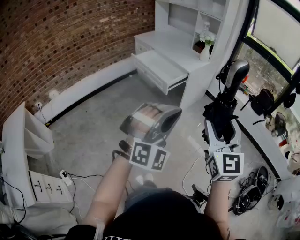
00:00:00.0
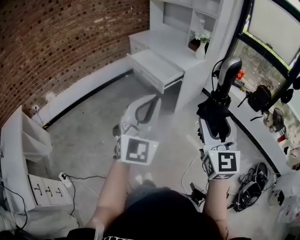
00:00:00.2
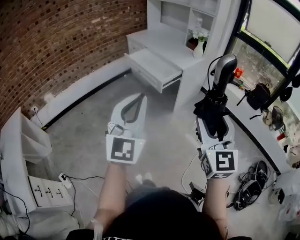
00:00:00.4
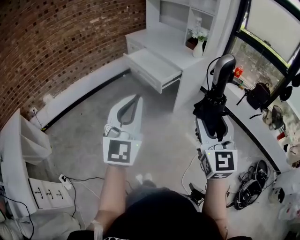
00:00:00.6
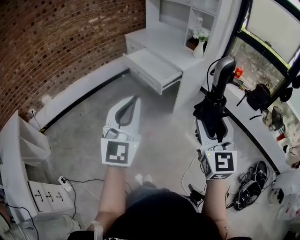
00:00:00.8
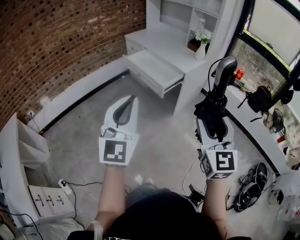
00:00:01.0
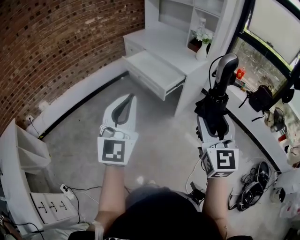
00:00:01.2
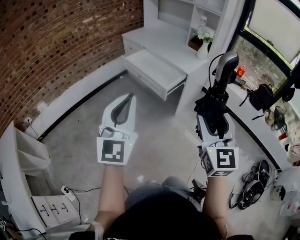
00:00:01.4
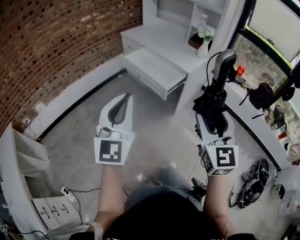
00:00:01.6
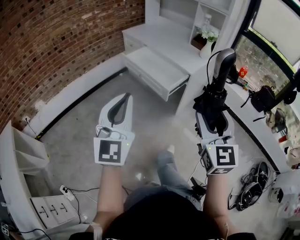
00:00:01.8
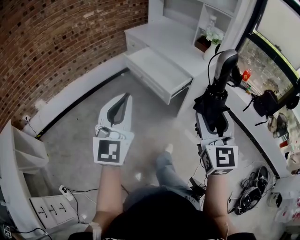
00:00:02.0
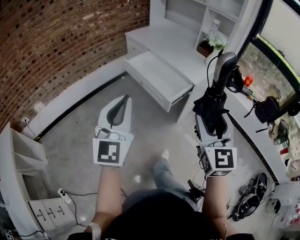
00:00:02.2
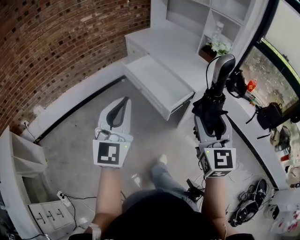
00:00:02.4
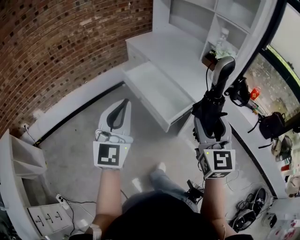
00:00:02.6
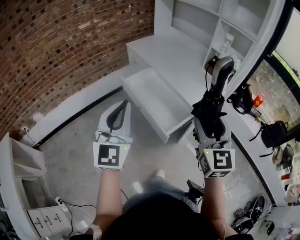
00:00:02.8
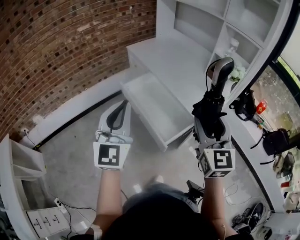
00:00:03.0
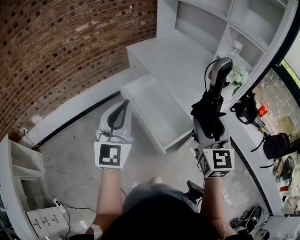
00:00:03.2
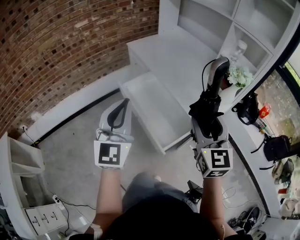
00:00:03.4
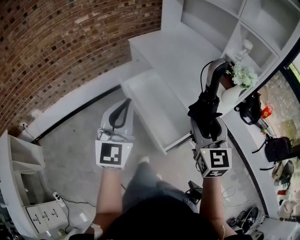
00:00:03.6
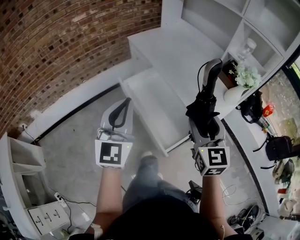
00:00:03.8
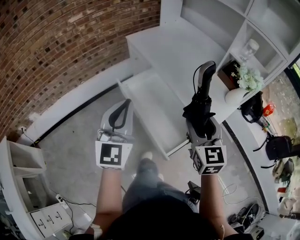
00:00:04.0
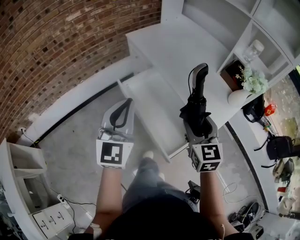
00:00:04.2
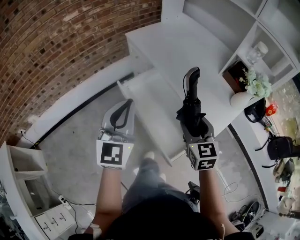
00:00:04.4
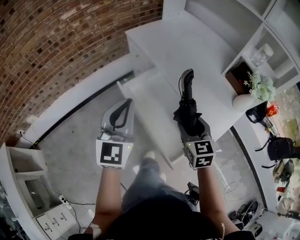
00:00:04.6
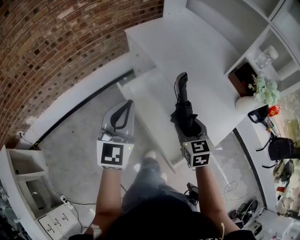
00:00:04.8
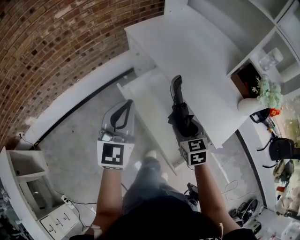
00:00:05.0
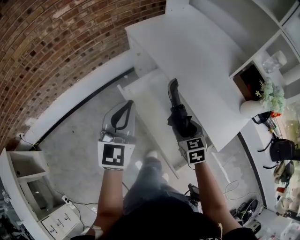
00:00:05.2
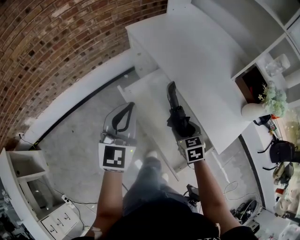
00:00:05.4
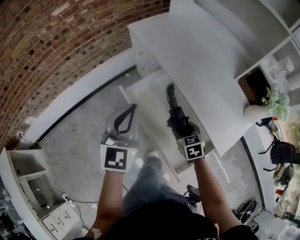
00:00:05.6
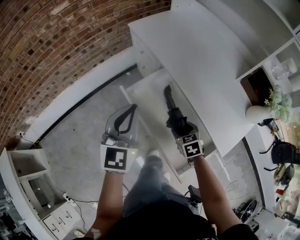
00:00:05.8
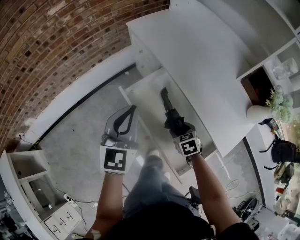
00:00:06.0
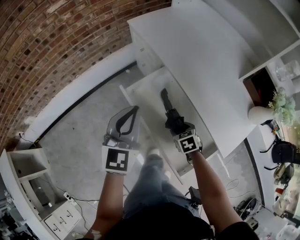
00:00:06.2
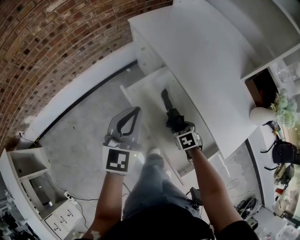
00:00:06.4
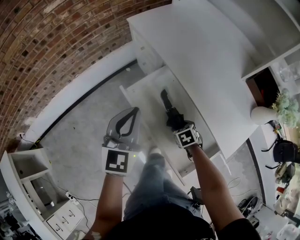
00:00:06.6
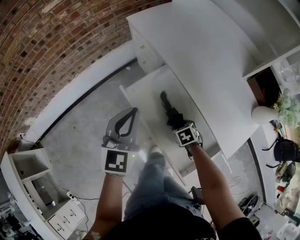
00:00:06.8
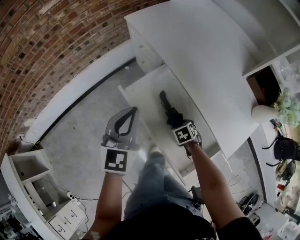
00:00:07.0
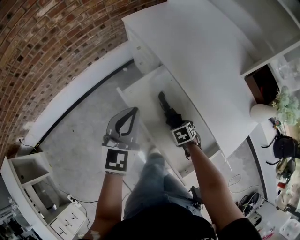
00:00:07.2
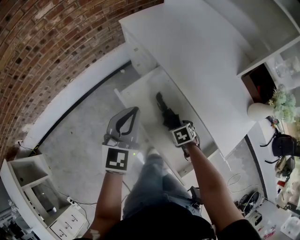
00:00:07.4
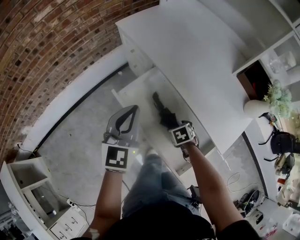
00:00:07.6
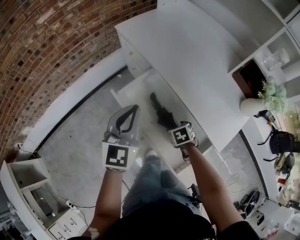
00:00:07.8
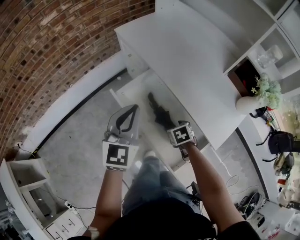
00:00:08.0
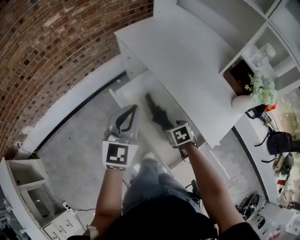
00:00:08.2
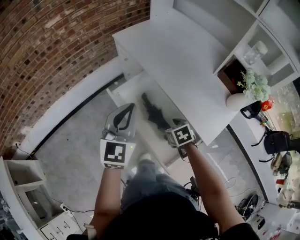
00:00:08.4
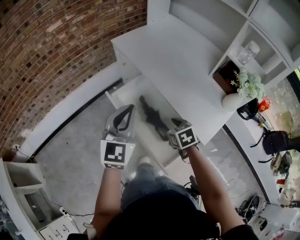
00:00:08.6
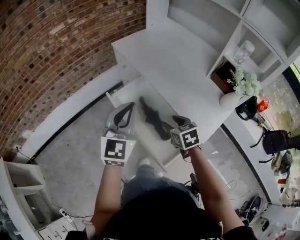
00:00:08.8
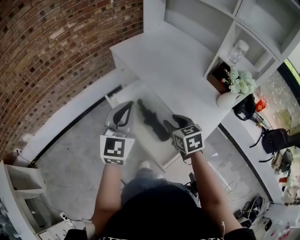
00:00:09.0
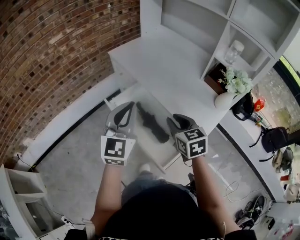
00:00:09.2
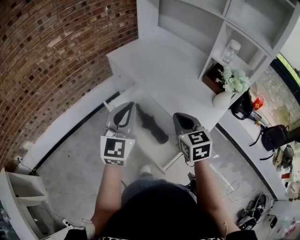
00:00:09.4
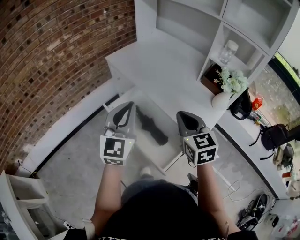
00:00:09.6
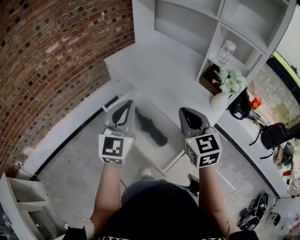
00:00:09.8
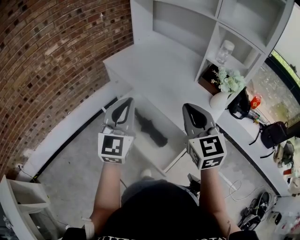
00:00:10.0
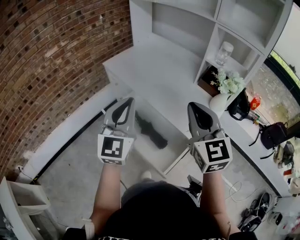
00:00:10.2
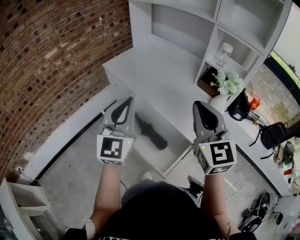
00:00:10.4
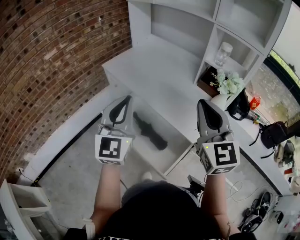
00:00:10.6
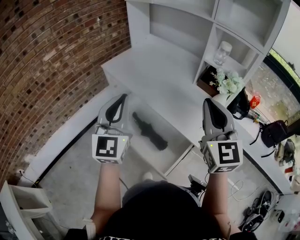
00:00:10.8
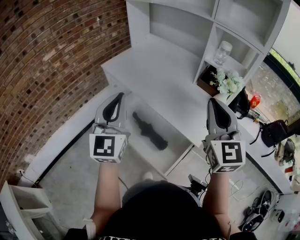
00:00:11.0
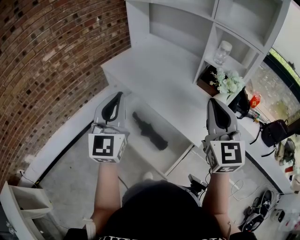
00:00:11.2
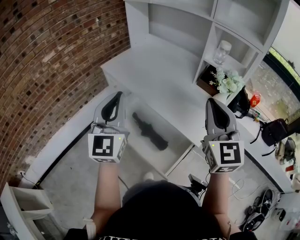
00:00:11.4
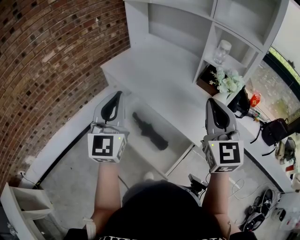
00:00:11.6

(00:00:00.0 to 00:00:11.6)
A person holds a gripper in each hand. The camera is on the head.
00:00:00.0 - 00:00:01.4: The right gripper travels forward and to the left by roughly 15 cm. Meanwhile the left gripper moves to the left and forward, roughly 25 cm, and rolls counterclockwise, seen from behind, by some 50 degrees.
00:00:01.4 - 00:00:02.8: The grippers both shift forward by some 35 cm.
00:00:02.8 - 00:00:04.4: The left gripper heads forward, covering roughly 25 cm; the right gripper travels forward and downward by approximately 30 cm, and swivels about 20 degrees.
00:00:04.4 - 00:00:05.8: The right gripper heads downward and forward, covering some 25 cm, and rotates some 30 degrees. The left gripper is displaced forward and downward by roughly 15 cm.
00:00:05.8 - 00:00:07.2: The left gripper changes place by about 5 cm, while the right gripper goes approximately 10 cm downward, and rotates approximately 20 degrees.
00:00:07.2 - 00:00:08.8: The right gripper heads upward, covering roughly 25 cm, and tips its fingers upward by some 30 degrees. Meanwhile the left gripper heads backward, upward and to the right, covering roughly 15 cm.
00:00:08.8 - 00:00:10.2: The left gripper is displaced upward by roughly 10 cm, while the right gripper is displaced upward by approximately 25 cm, angles its fingers upward, by roughly 40 degrees, and closes up.
00:00:10.2 - 00:00:11.6: The right gripper goes approximately 5 cm to the right.

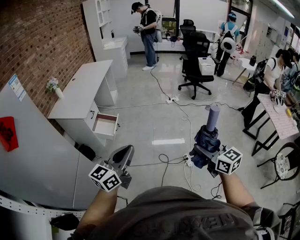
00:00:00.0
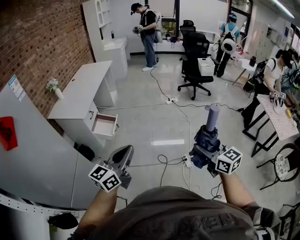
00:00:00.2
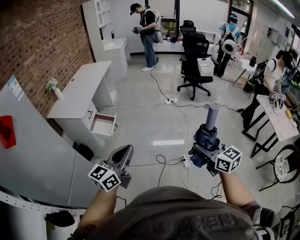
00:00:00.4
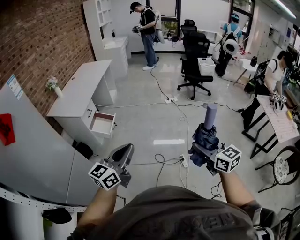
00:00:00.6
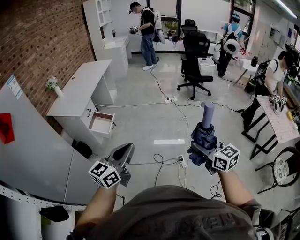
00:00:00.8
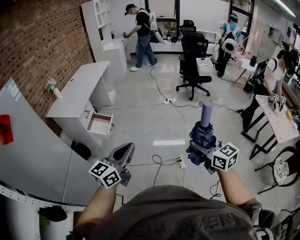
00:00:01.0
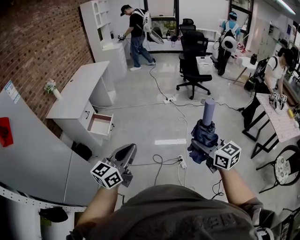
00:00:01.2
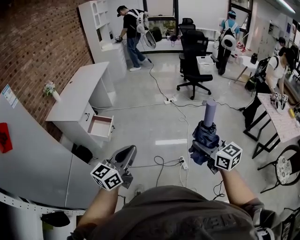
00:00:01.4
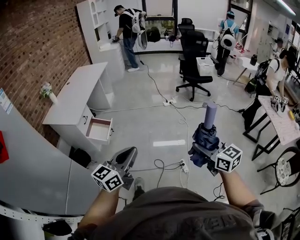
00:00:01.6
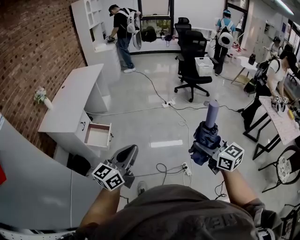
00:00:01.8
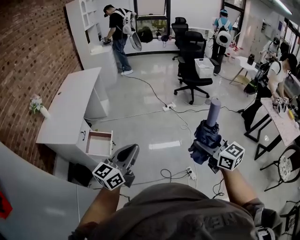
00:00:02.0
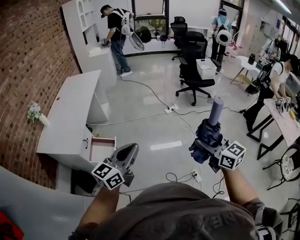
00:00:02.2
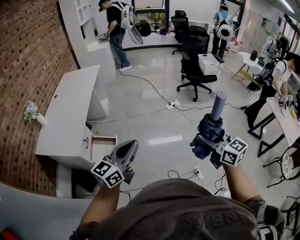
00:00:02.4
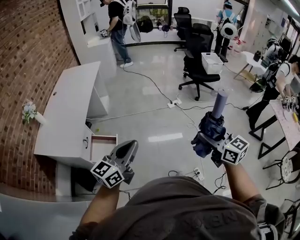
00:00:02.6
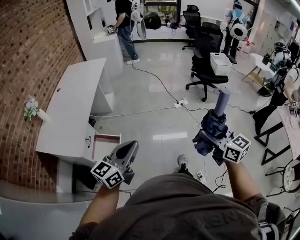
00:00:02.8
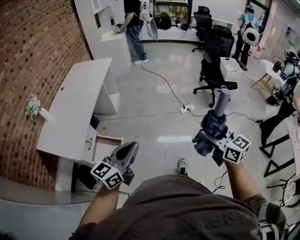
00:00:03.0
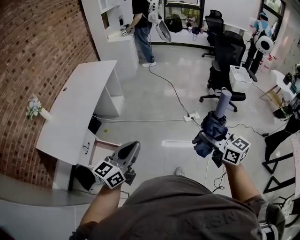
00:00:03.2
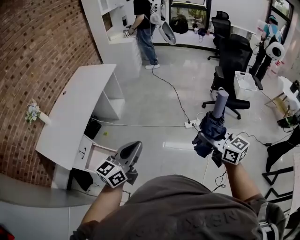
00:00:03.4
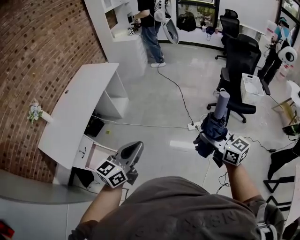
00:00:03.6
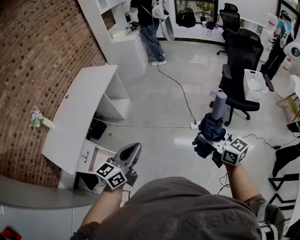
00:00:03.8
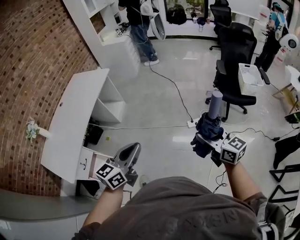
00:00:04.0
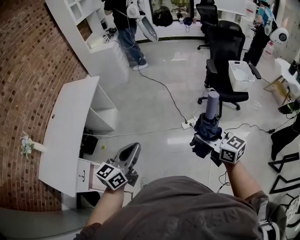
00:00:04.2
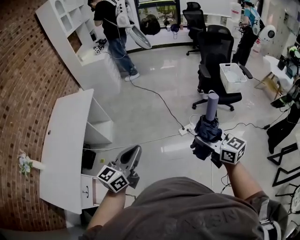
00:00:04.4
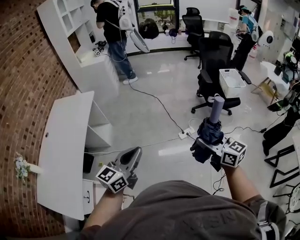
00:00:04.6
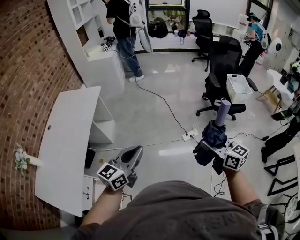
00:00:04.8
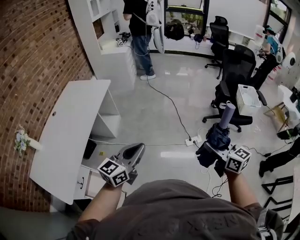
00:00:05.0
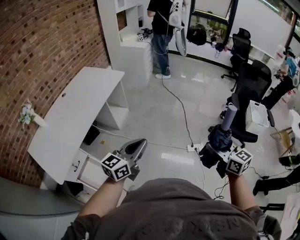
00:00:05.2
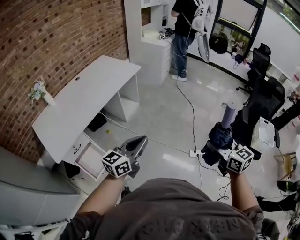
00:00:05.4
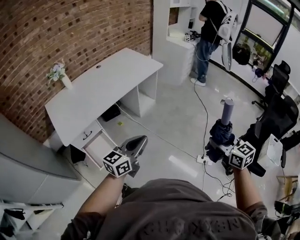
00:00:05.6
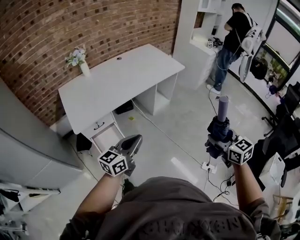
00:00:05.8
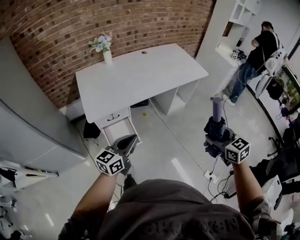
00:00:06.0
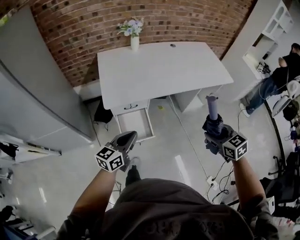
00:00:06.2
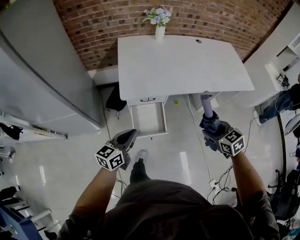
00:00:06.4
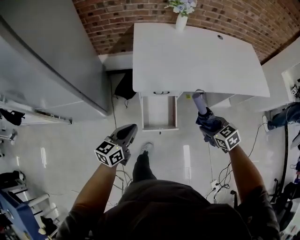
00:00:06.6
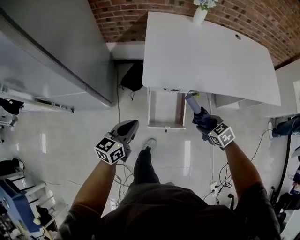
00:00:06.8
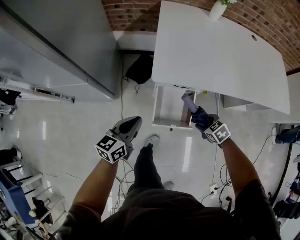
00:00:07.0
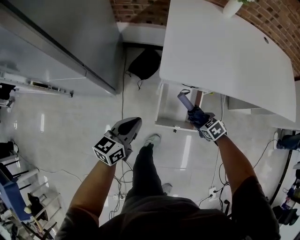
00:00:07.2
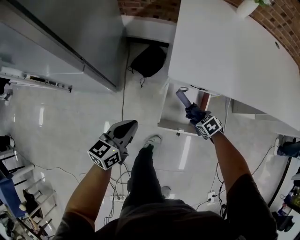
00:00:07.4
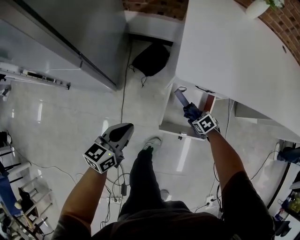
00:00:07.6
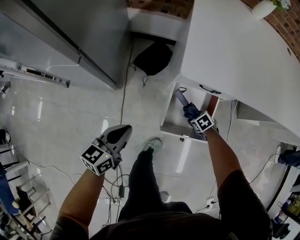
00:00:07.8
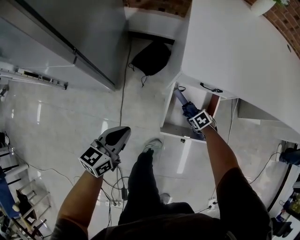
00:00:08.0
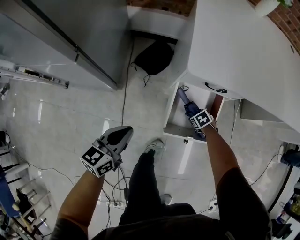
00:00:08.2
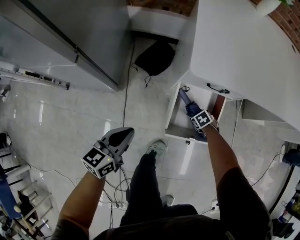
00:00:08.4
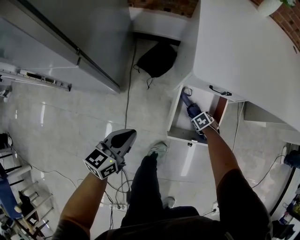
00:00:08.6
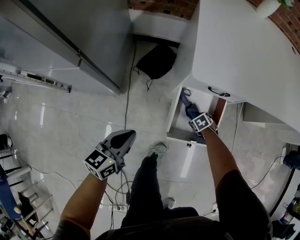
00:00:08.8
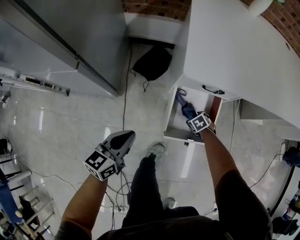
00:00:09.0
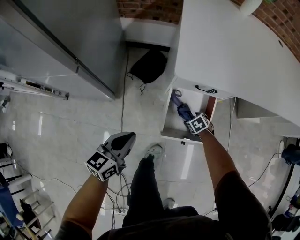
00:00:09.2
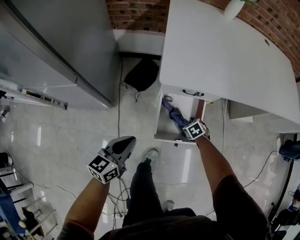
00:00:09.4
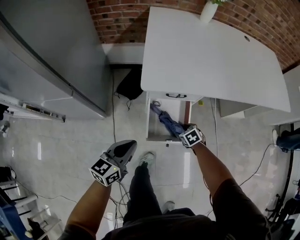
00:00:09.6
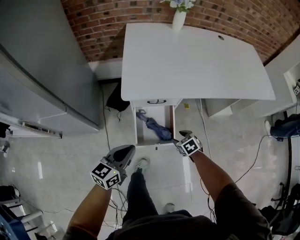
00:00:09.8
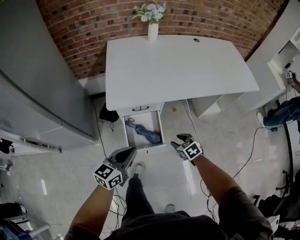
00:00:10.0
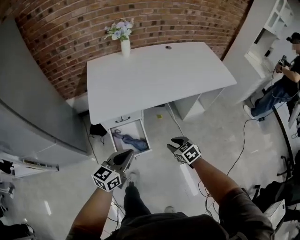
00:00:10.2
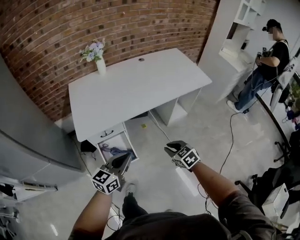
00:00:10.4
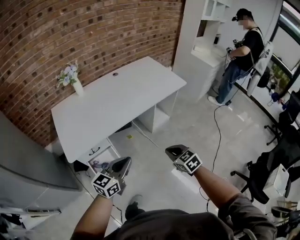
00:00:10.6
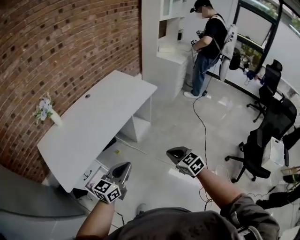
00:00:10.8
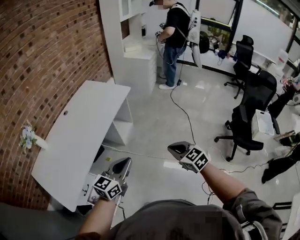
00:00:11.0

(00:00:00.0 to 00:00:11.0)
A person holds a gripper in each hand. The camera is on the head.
00:00:00.0 - 00:00:01.6: The left gripper heads to the right and forward, covering approximately 10 cm; the right gripper is displaced forward and to the right by about 10 cm.
00:00:01.6 - 00:00:03.2: Both grippers are carried forward, about 60 cm.
00:00:03.2 - 00:00:04.8: Both grippers travel together forward, some 30 cm.
00:00:04.8 - 00:00:06.2: The right gripper changes place by about 40 cm, and swivels some 80 degrees. The left gripper changes place by approximately 40 cm, and rotates roughly 70 degrees.
00:00:06.2 - 00:00:07.8: The left gripper is displaced downward by some 35 cm, and changes its angle by some 30 degrees. The right gripper moves downward, approximately 70 cm, and angles its fingers downward, by about 40 degrees.
00:00:07.8 - 00:00:09.4: The left gripper changes place by approximately 5 cm.
00:00:09.4 - 00:00:11.0: The pair of grippers is taken about 60 cm. The left gripper changes its angle by about 70 degrees. The right gripper moves upward, some 60 cm, tilts its fingers approximately 40 degrees upward, and closes its fingers.

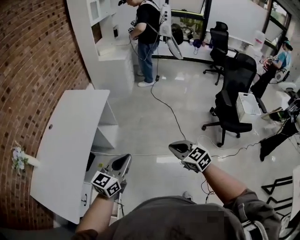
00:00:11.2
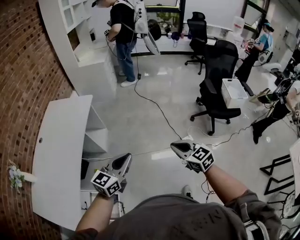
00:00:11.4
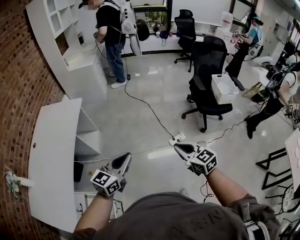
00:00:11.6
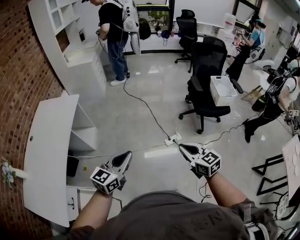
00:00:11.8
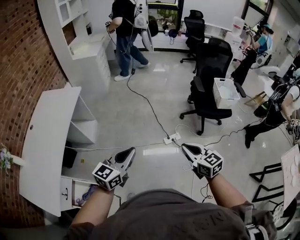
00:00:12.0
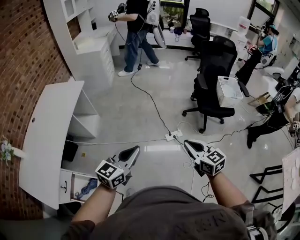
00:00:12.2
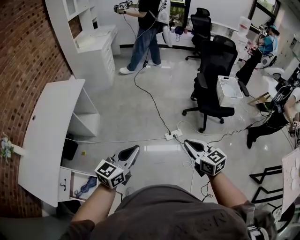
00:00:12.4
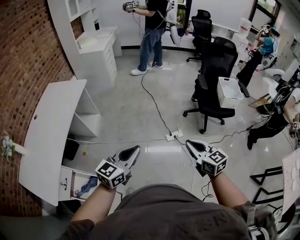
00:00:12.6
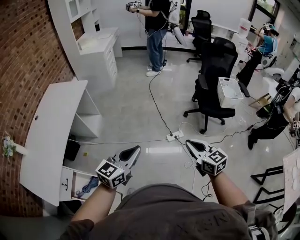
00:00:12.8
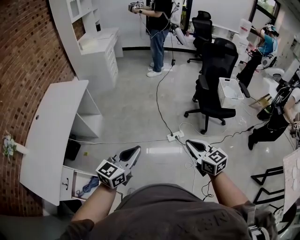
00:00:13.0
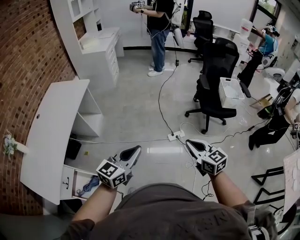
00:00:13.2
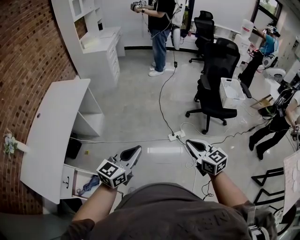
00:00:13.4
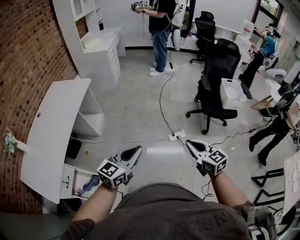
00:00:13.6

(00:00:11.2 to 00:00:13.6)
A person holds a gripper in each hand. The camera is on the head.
00:00:11.2 - 00:00:12.4: The grippers both shift to the right by some 30 cm. The right gripper turns by some 20 degrees.
00:00:12.4 - 00:00:13.6: The grippers move only a little.
